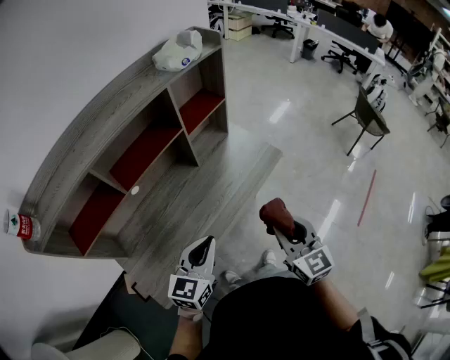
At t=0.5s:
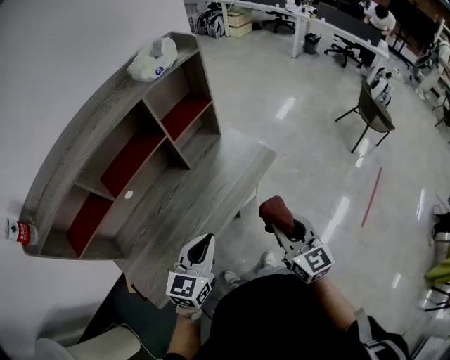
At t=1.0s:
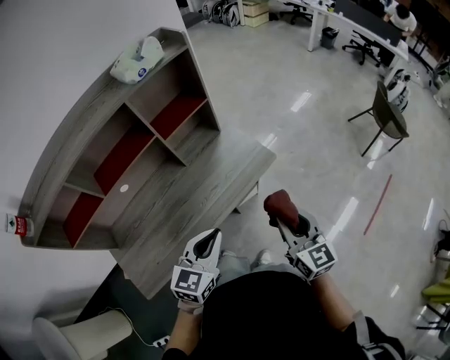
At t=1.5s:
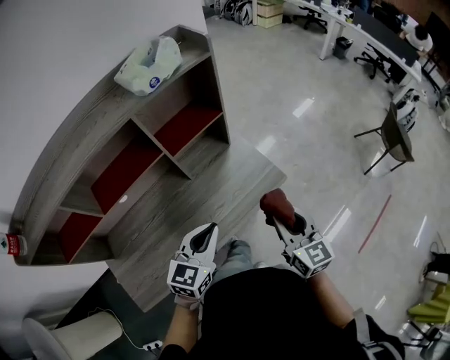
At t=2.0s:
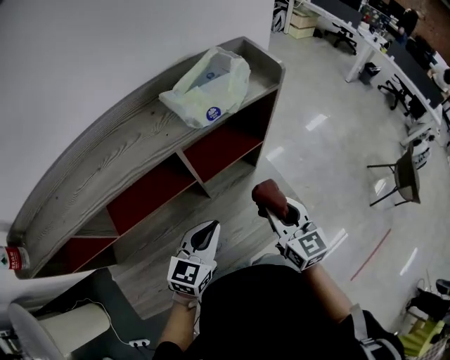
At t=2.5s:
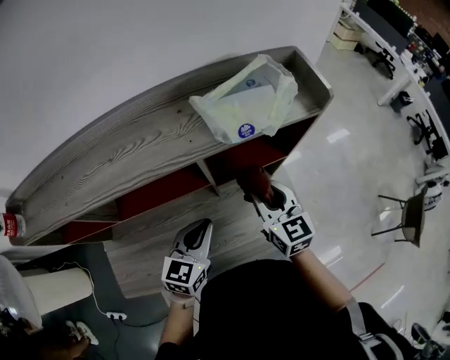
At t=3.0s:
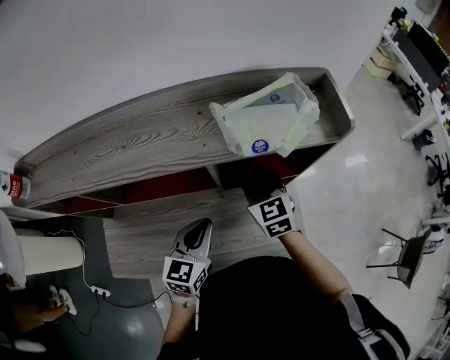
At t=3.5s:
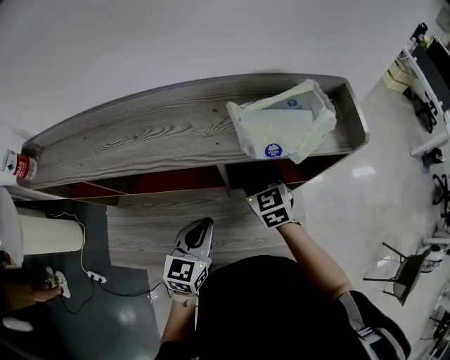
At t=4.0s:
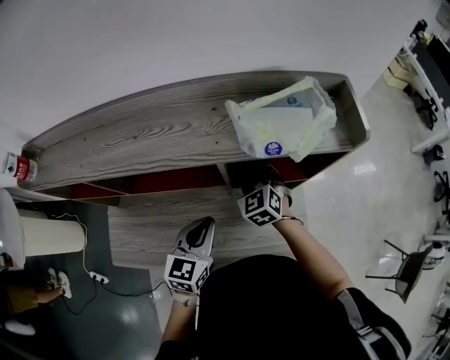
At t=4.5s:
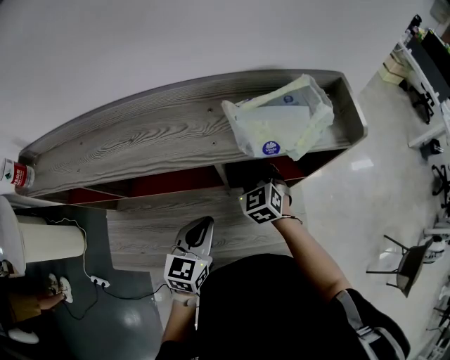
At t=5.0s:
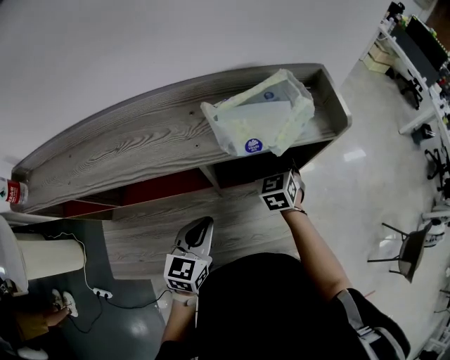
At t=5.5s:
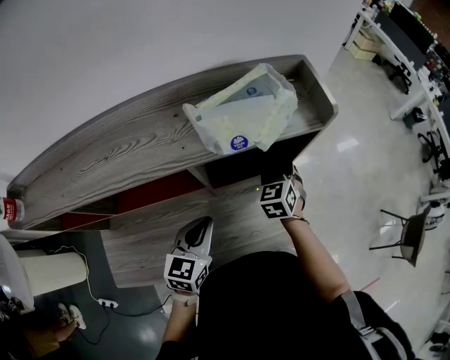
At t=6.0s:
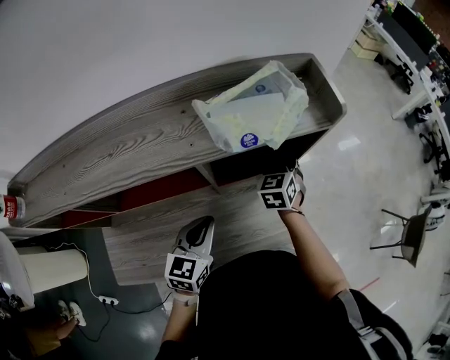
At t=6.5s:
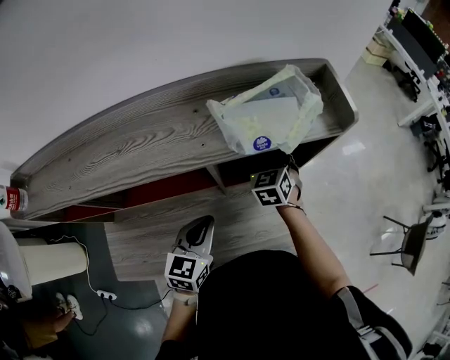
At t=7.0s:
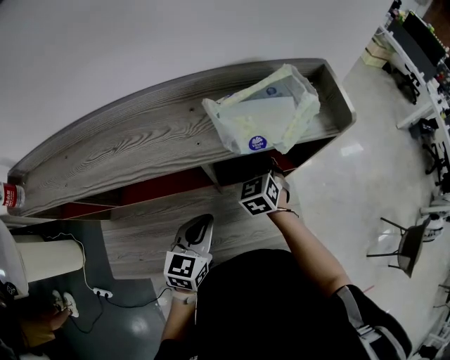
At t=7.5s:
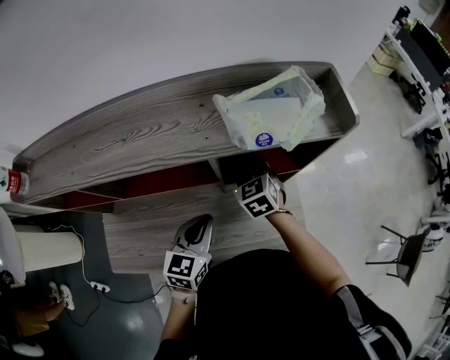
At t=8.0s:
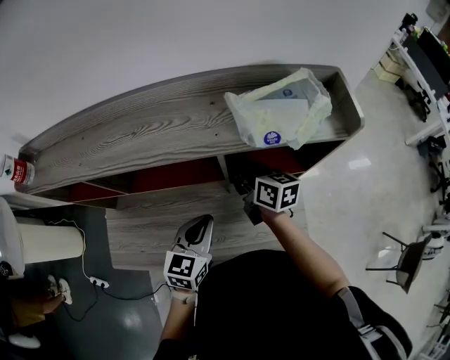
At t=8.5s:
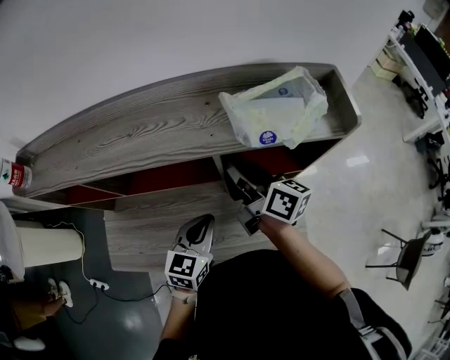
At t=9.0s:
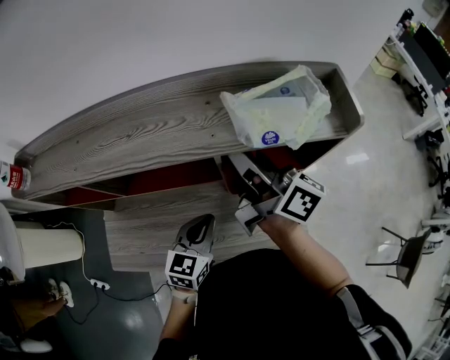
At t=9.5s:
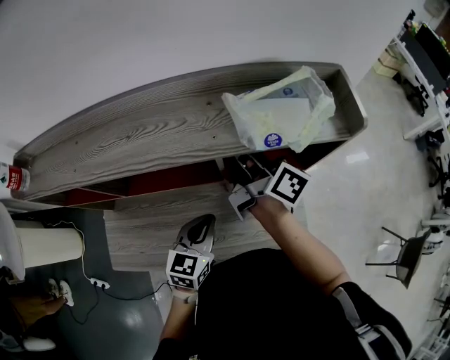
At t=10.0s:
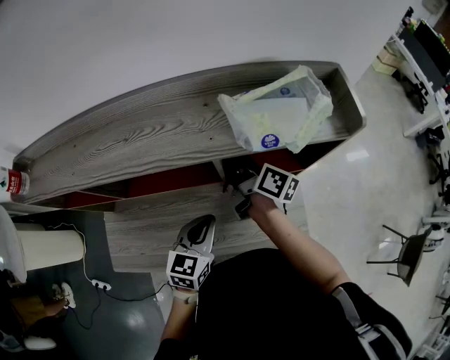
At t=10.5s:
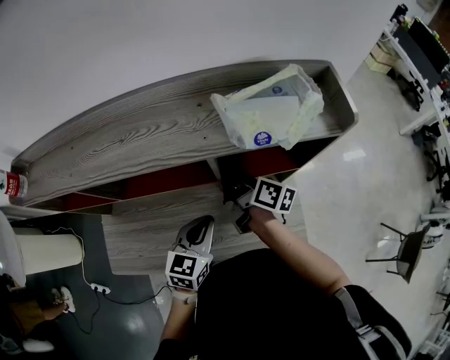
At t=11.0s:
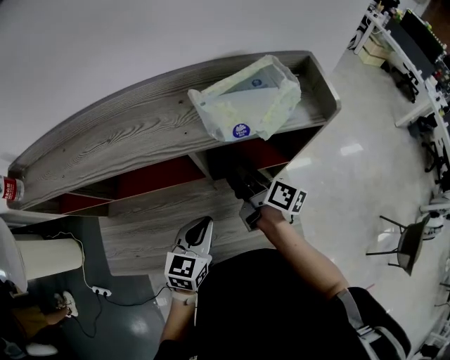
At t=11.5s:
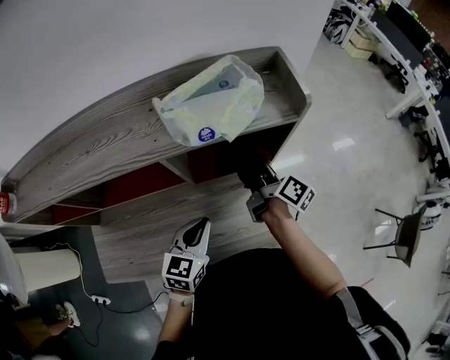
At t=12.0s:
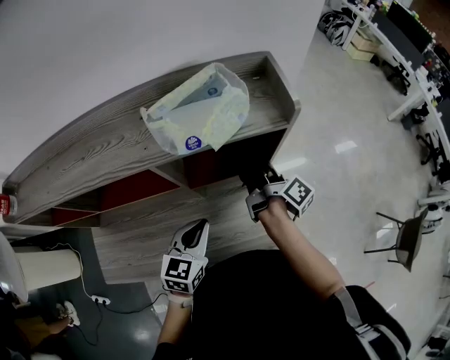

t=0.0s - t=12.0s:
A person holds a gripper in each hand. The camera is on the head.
t=0.0s - t=2.0s: The grippers both shift forward by roughly 30 cm.
t=2.0s - t=4.0s: The left gripper changes place by approximately 5 cm, and changes its angle by about 30 degrees. The right gripper shifts by some 25 cm, rotates around the line of its fingers by some 40 degrees, counterclockwise from behind, and opens, then closes once more.
t=4.0s - t=6.0s: The right gripper moves to the right, about 15 cm, and changes its angle by approximately 40 degrees.
t=6.0s - t=8.0s: The right gripper moves some 15 cm, and swivels some 60 degrees.
t=8.0s - t=10.0s: The right gripper moves some 20 cm upward and comes back, and rotates some 30 degrees.
t=10.0s - t=12.0s: The right gripper is displaced to the right by approximately 20 cm, and changes its angle by some 30 degrees. Meanwhile the left gripper shifts roughly 10 cm to the right.

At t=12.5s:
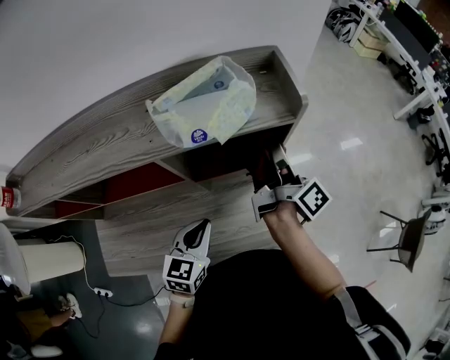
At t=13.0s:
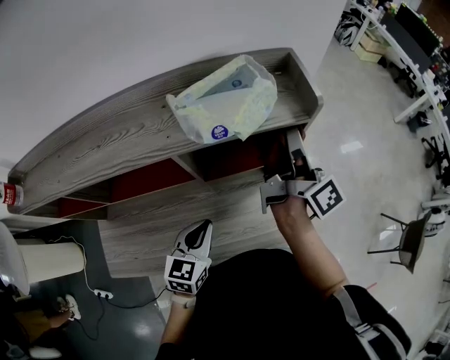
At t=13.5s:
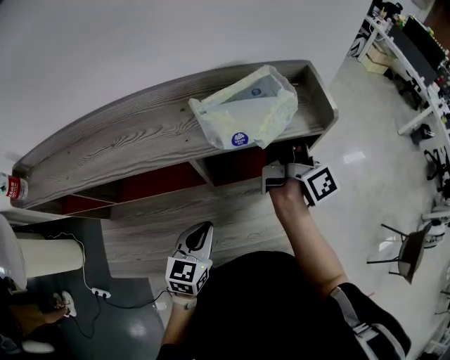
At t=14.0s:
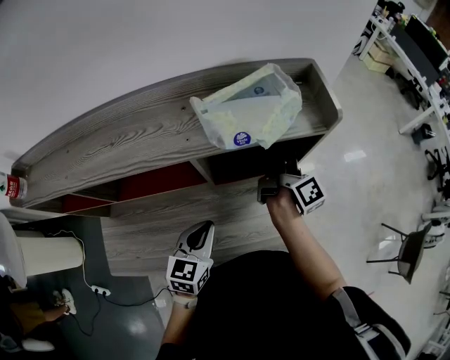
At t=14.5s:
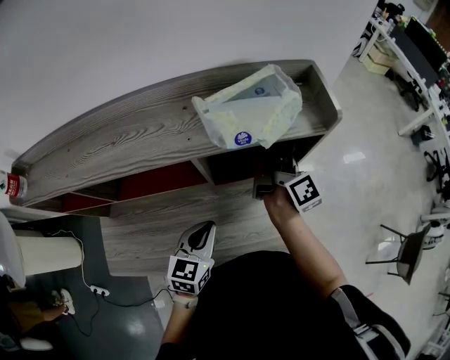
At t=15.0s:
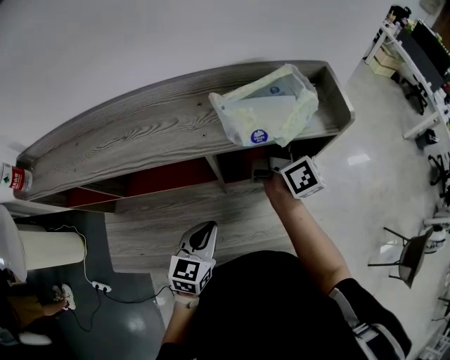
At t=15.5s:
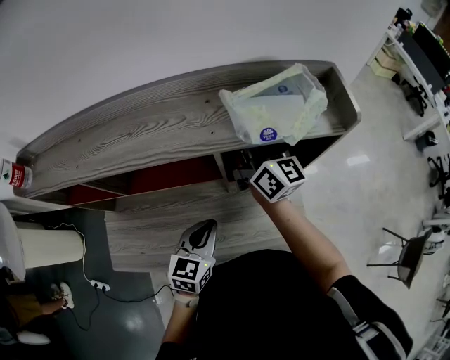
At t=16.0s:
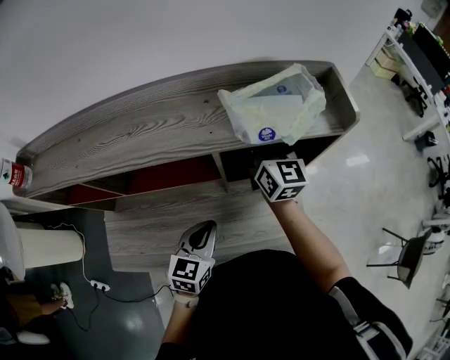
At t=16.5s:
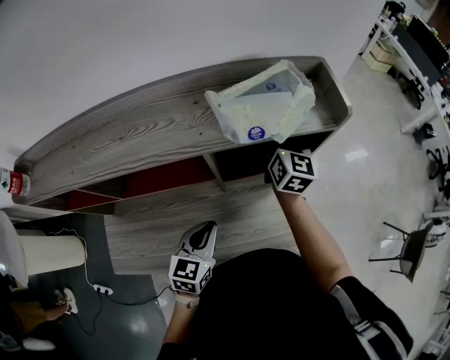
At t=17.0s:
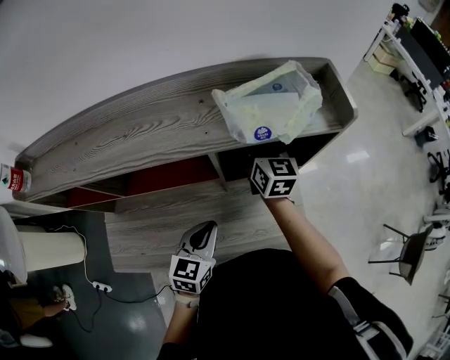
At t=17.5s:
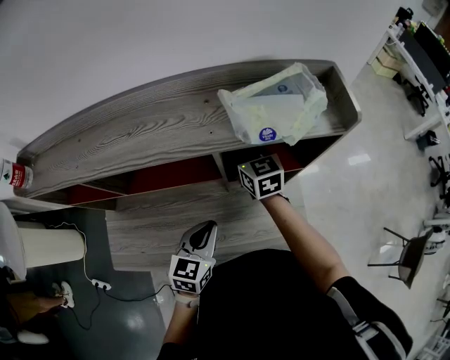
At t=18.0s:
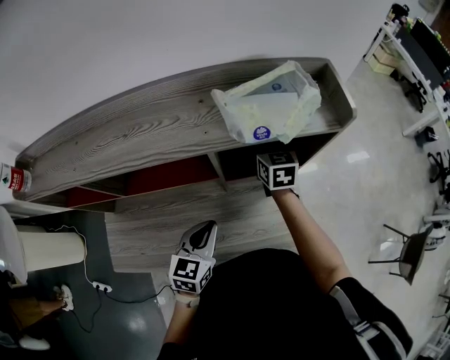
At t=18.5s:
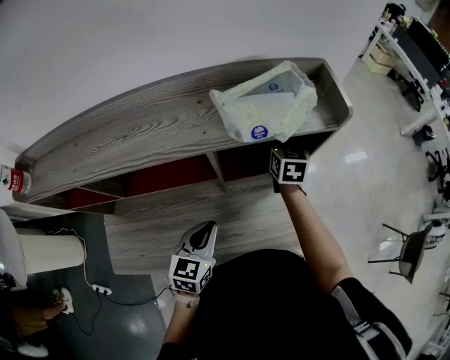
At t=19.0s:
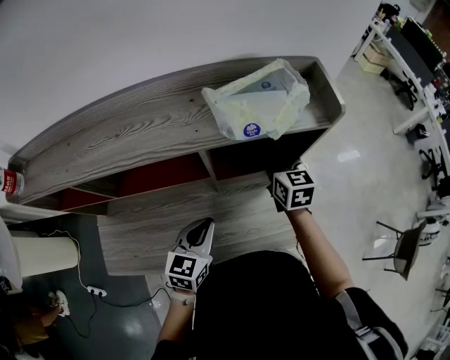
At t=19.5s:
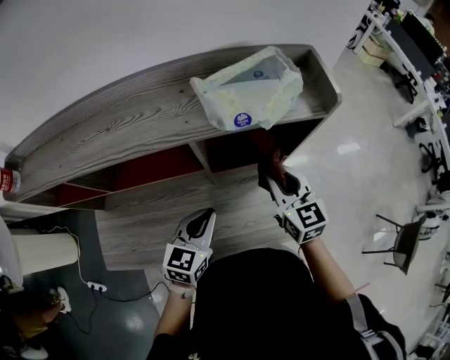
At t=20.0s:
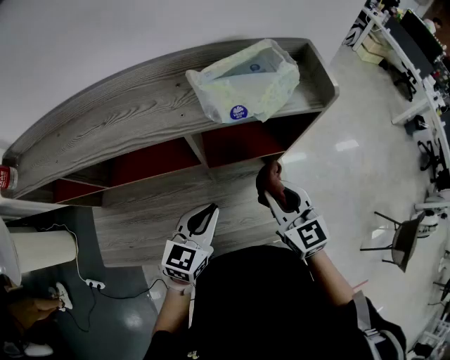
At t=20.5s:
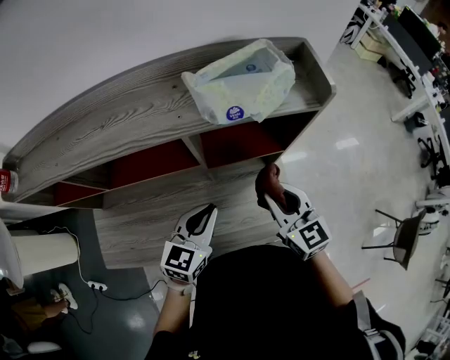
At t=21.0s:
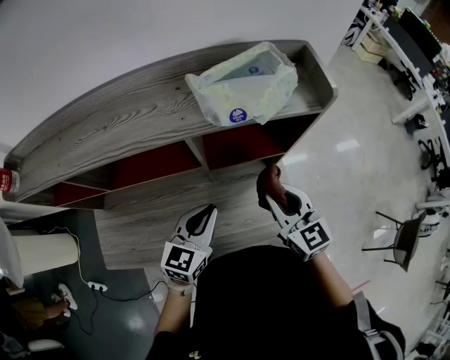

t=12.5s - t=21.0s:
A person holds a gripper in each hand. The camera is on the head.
t=12.5s - t=14.5s: The right gripper reaches some 10 cm upward, then returns, and rotates some 20 degrees.
t=14.5s - t=16.5s: The right gripper reaches roughly 15 cm to the left, then returns, and rolls counterclockwise, seen from behind, by about 50 degrees.
t=16.5s - t=19.0s: The right gripper goes approximately 10 cm downward and backward, goes to the left and returns, roughly 15 cm each way, and rotates about 30 degrees.
t=19.0s - t=21.0s: The right gripper travels backward by about 15 cm.

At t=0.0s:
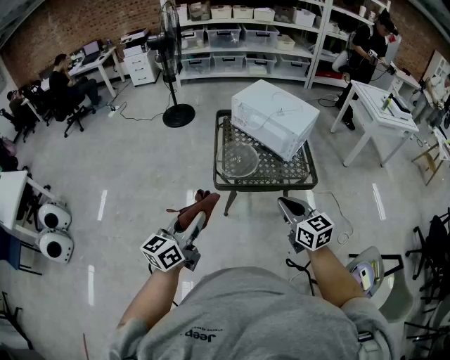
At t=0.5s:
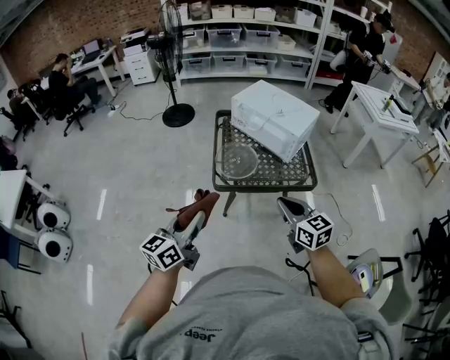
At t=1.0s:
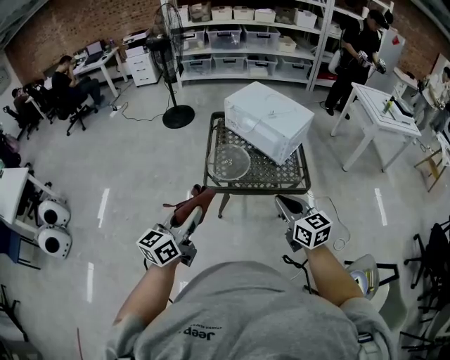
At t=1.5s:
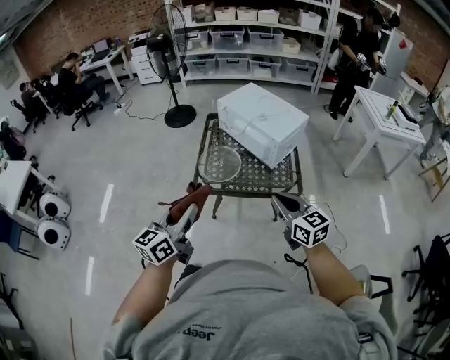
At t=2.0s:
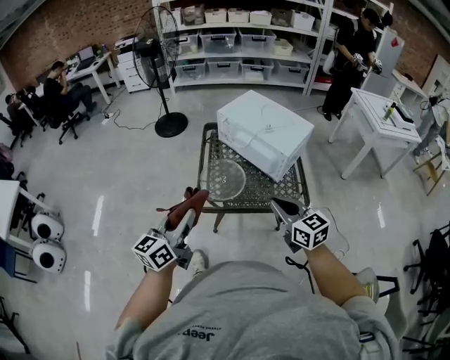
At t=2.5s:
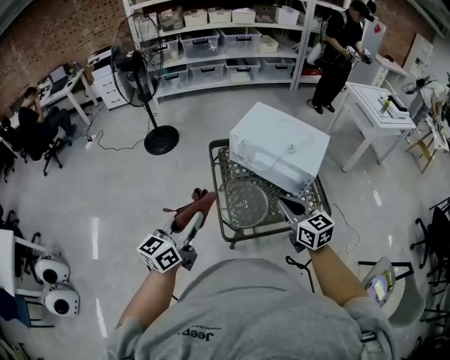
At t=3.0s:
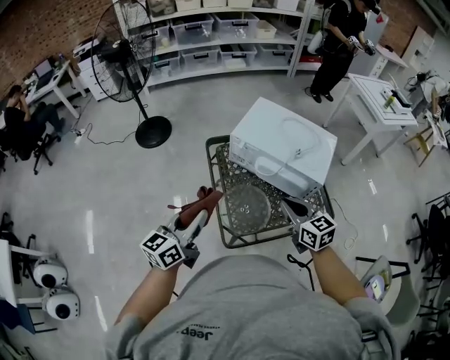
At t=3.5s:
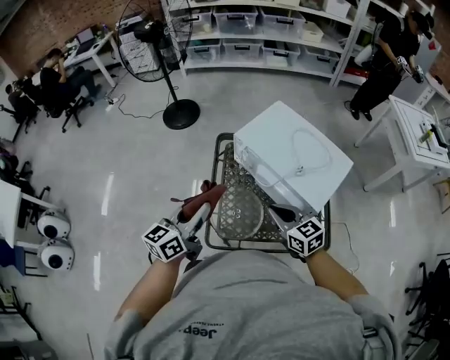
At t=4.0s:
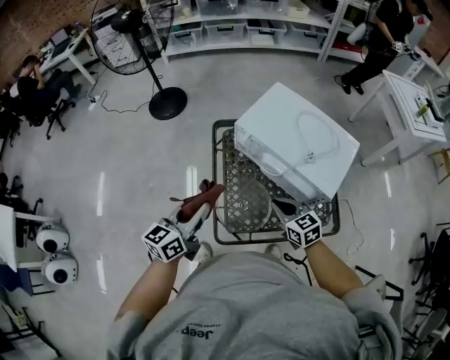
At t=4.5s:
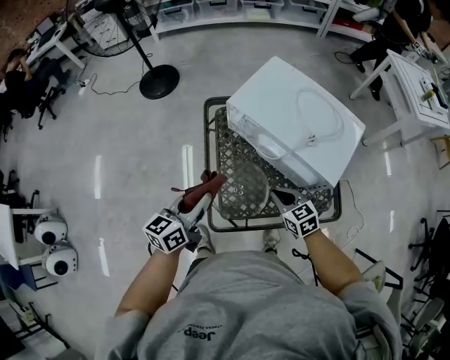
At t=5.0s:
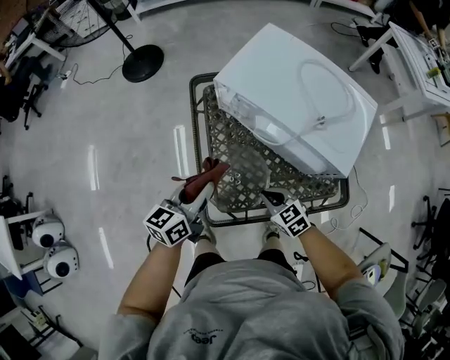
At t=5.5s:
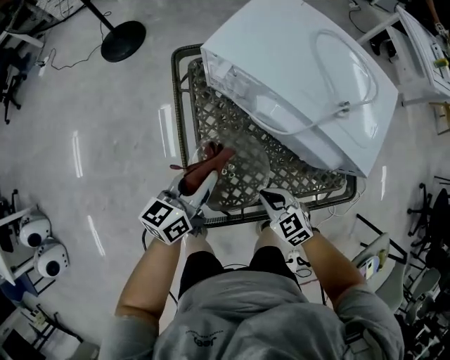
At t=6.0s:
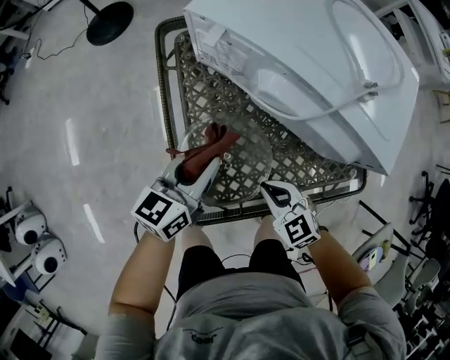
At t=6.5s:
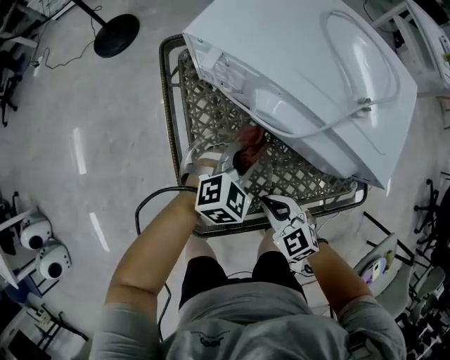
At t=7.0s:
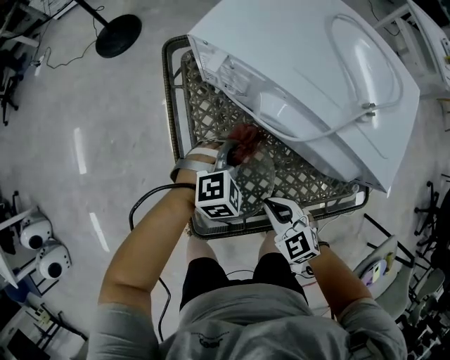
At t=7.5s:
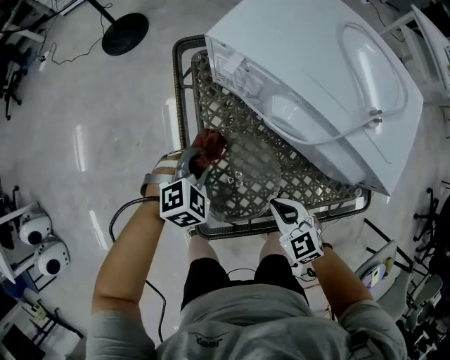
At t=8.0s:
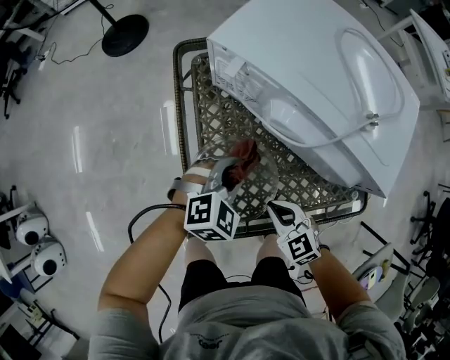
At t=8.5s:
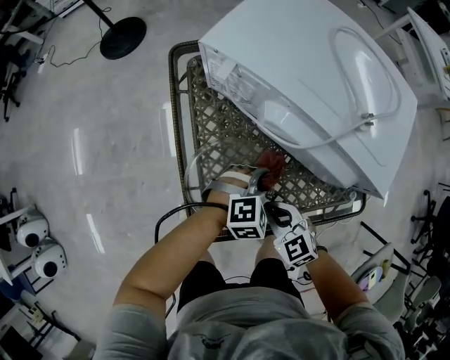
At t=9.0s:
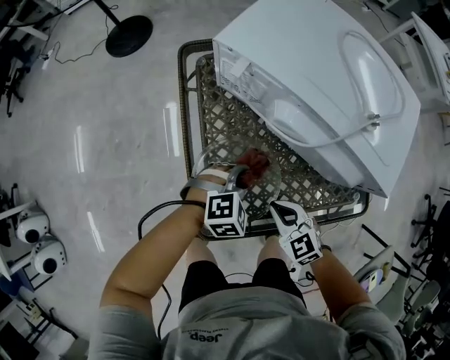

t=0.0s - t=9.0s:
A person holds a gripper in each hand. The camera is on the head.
t=0.0s - t=2.0s: Both grippers move forward and to the right, roughly 15 cm.
t=2.0s - t=4.5s: Both grippers move forward and downward, some 35 cm. The right gripper turns by some 20 degrees. Meanwhile the left gripper swivels about 20 degrees.
t=4.5s - t=7.0s: The right gripper is displaced downward by roughly 15 cm. The left gripper travels downward and to the right by about 30 cm, and rotates around the line of its fingers by about 70 degrees, clockwise from behind.
t=7.0s - t=9.0s: The left gripper goes left and right, roughly 20 cm each way, reversing 2 times.
